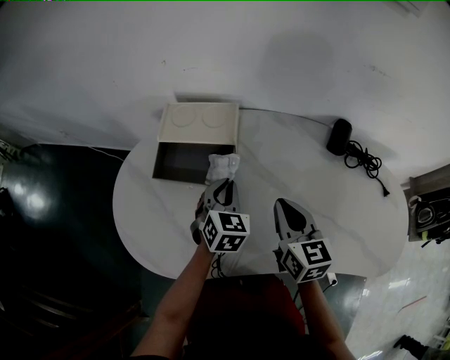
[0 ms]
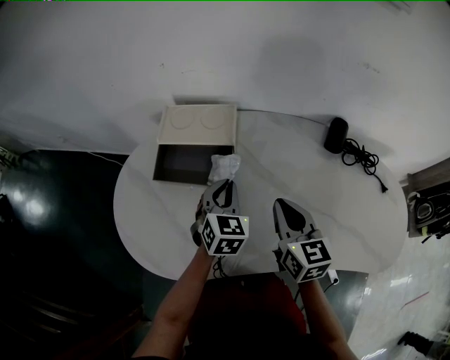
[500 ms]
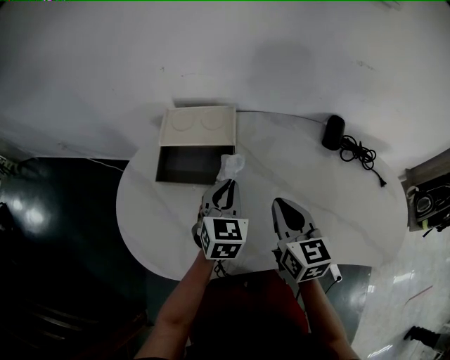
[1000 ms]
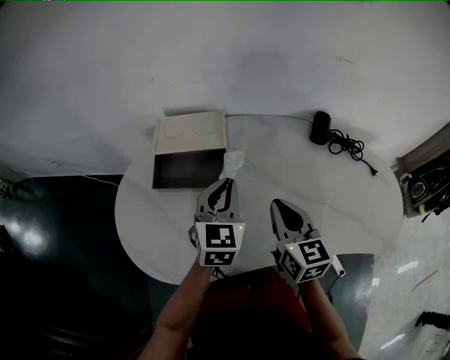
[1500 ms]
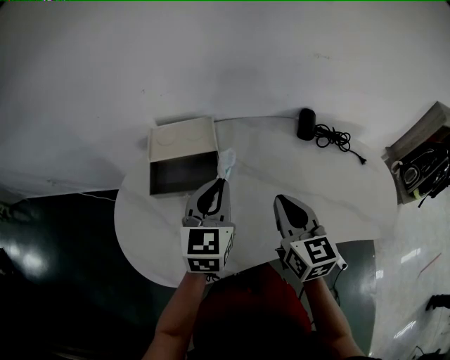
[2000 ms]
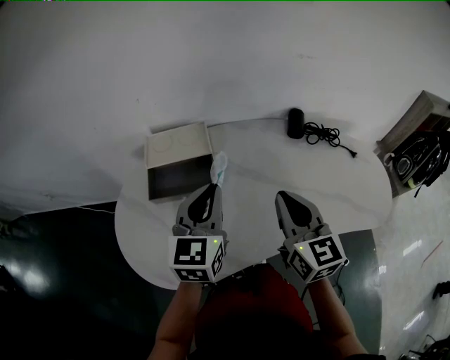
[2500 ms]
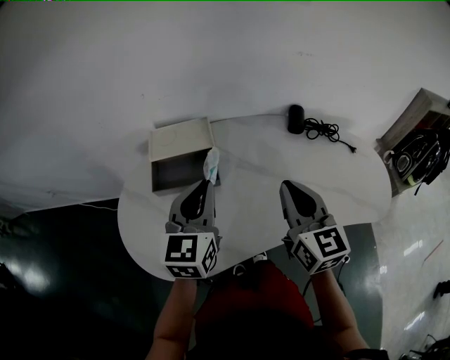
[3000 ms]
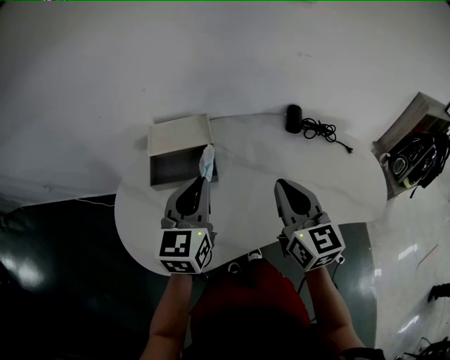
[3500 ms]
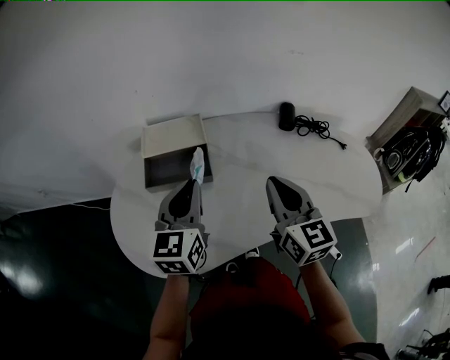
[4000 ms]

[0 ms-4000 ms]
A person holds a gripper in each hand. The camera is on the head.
0 ms to 2000 ms: The left gripper shifts about 15 cm upward, and swivels some 30 degrees, while the right gripper heads upward and backward, covering about 10 cm.
2000 ms to 4000 ms: The left gripper shifts about 10 cm backward and to the left, while the right gripper shifts by roughly 5 cm.

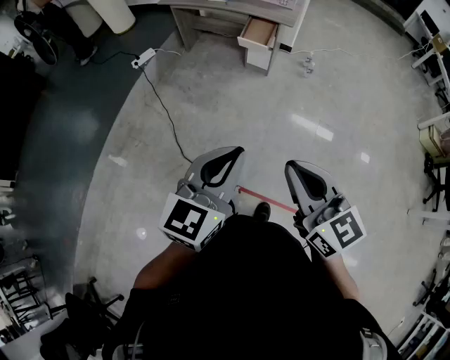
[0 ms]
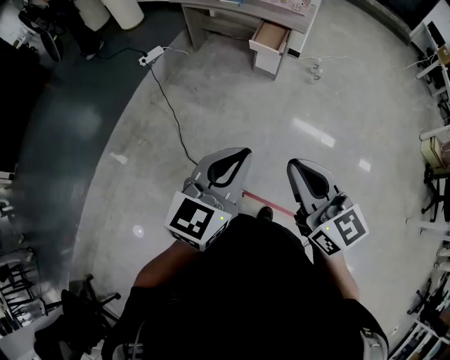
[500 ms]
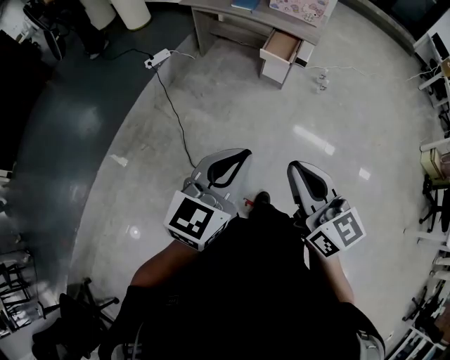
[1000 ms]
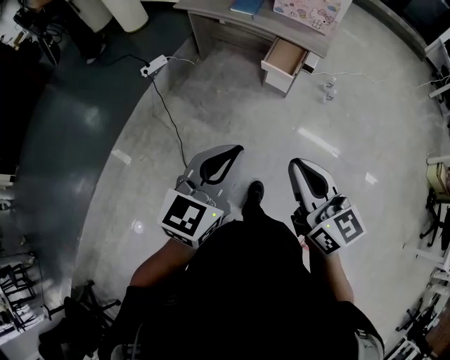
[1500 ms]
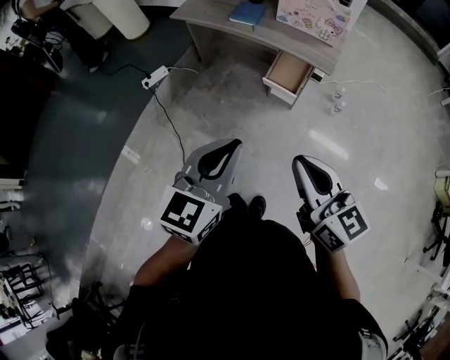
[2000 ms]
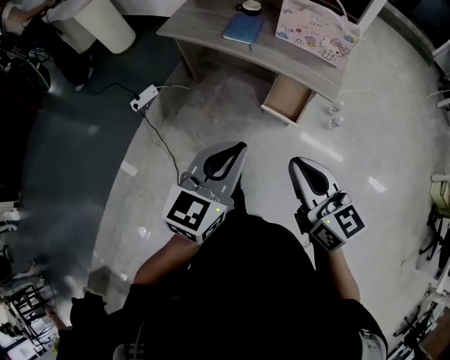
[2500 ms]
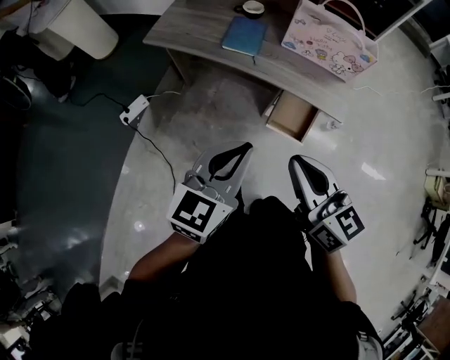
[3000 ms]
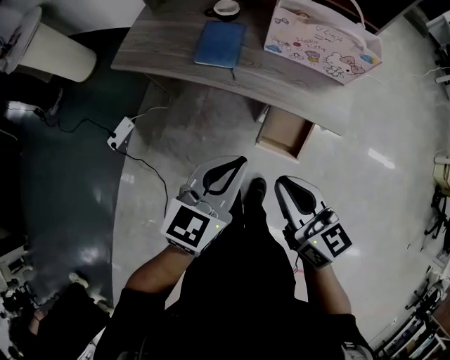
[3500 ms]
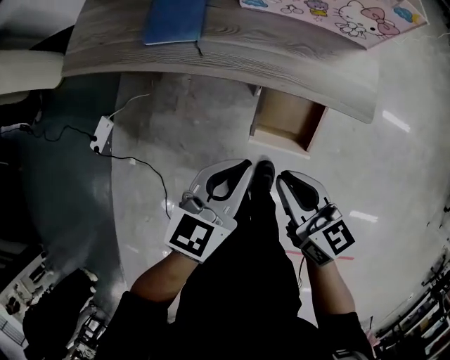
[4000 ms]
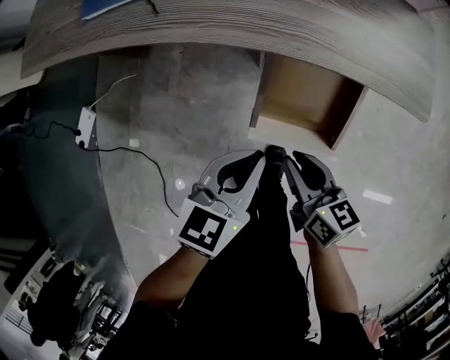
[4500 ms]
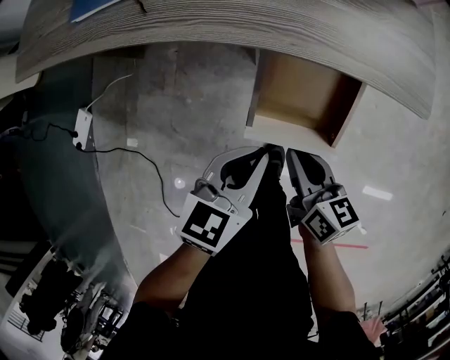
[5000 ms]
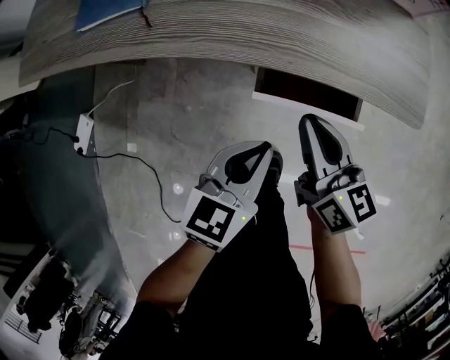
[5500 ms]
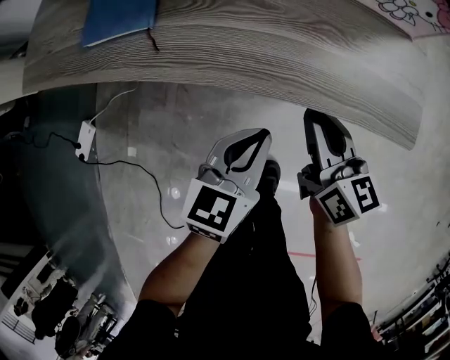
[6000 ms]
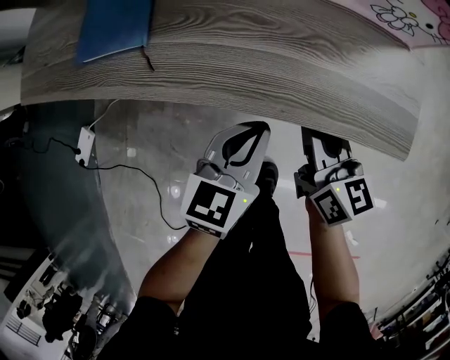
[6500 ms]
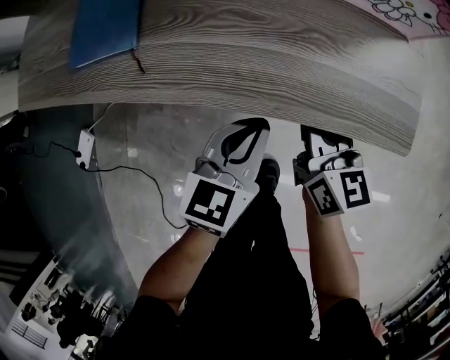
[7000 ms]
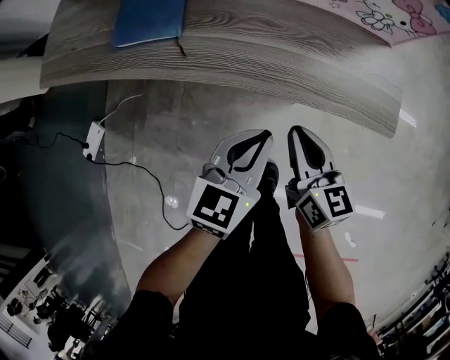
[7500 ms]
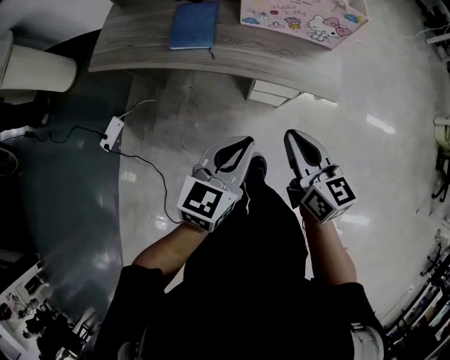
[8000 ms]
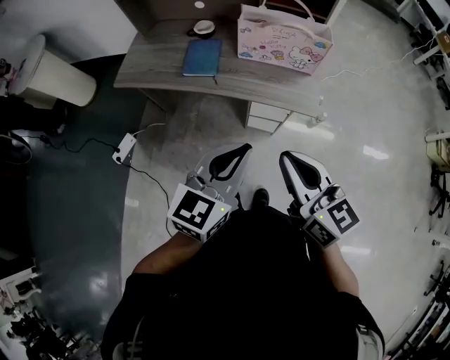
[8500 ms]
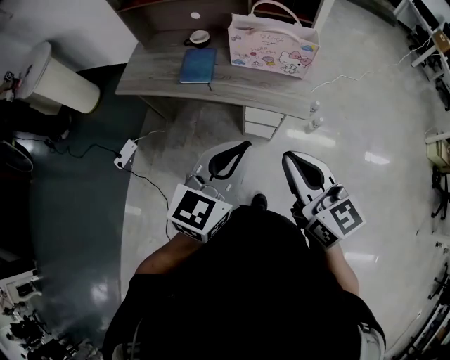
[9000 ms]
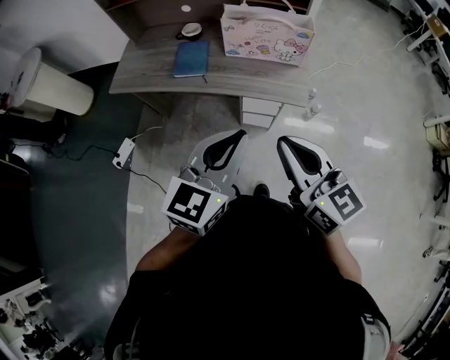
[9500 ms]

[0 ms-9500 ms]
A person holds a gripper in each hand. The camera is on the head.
0 ms to 2000 ms: Both grippers are carried forward, approximately 40 cm.
2000 ms to 4000 ms: The two grippers travel together, forward, about 40 cm. The two grippers go roughly 30 cm downward. The right gripper turns by roughly 20 degrees. The left gripper rotates some 30 degrees.
4000 ms to 5500 ms: The right gripper is displaced downward and forward by roughly 20 cm; the left gripper travels downward by approximately 20 cm.
5500 ms to 7500 ms: The right gripper travels forward and back again, roughly 10 cm each way, while the left gripper moves upward, about 10 cm.
7500 ms to 9500 ms: The two grippers go roughly 50 cm upward and backward. The right gripper changes its angle by approximately 20 degrees.

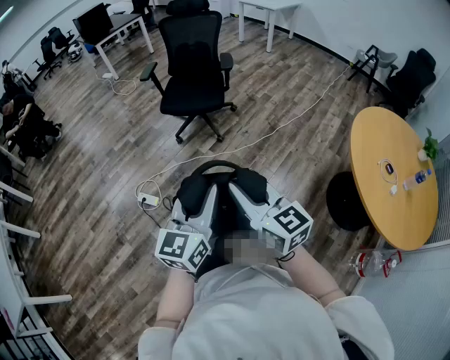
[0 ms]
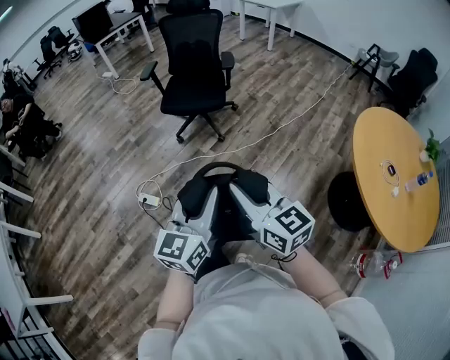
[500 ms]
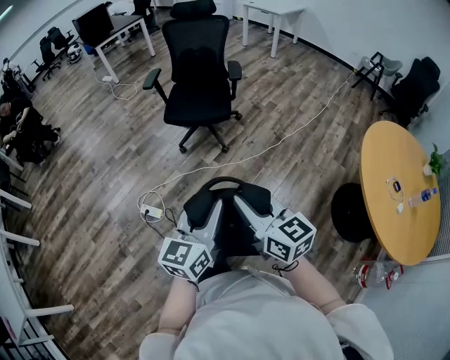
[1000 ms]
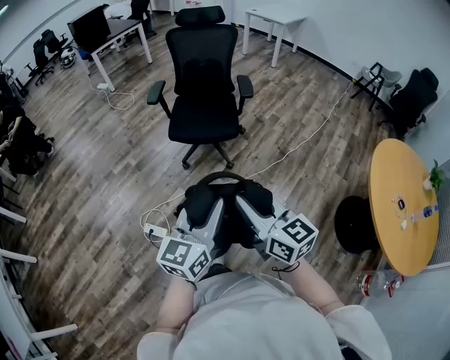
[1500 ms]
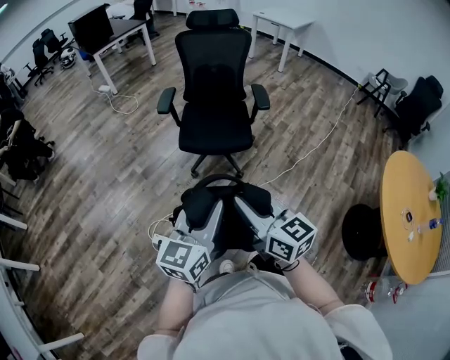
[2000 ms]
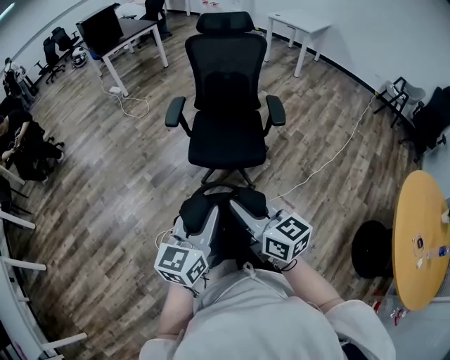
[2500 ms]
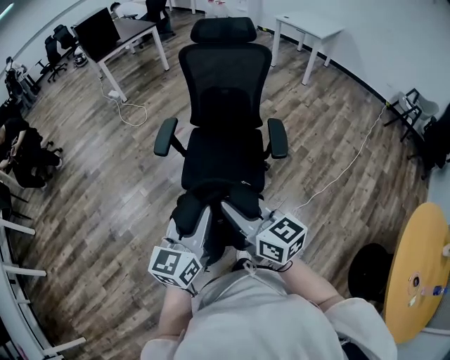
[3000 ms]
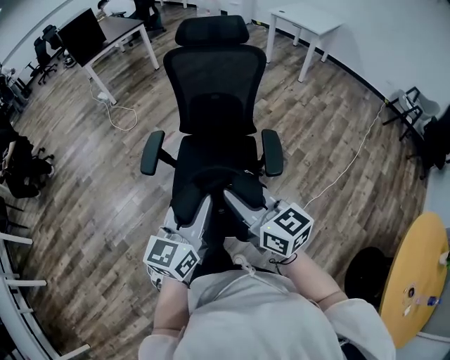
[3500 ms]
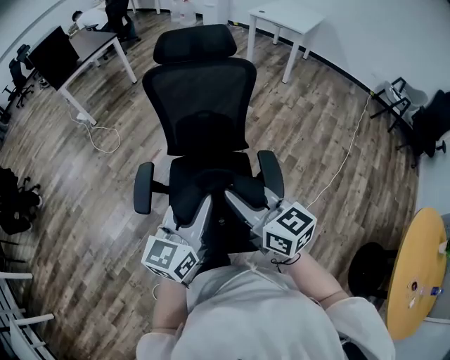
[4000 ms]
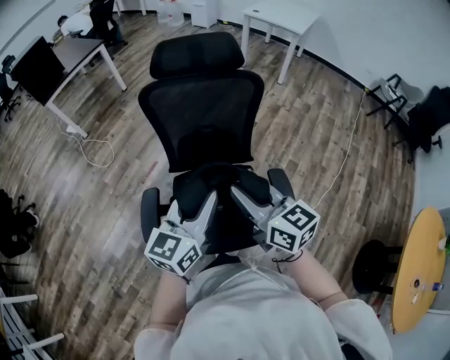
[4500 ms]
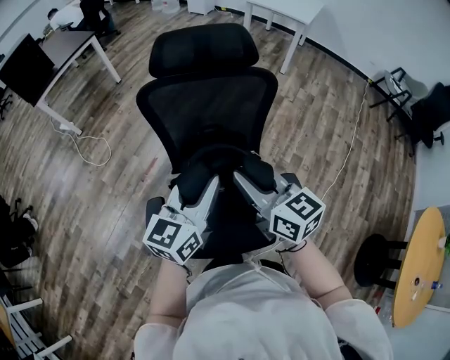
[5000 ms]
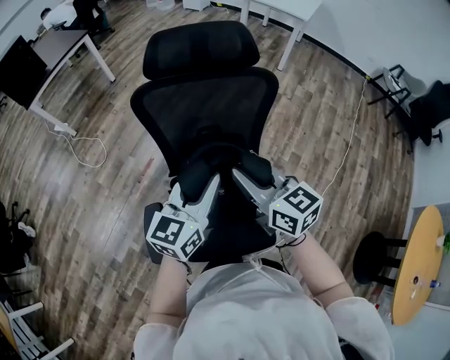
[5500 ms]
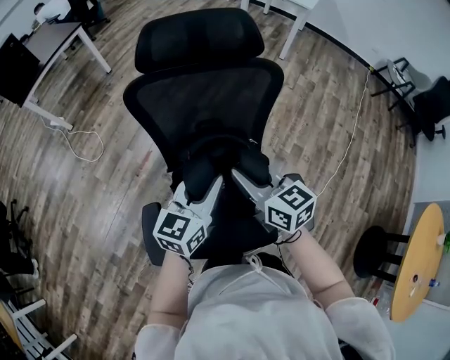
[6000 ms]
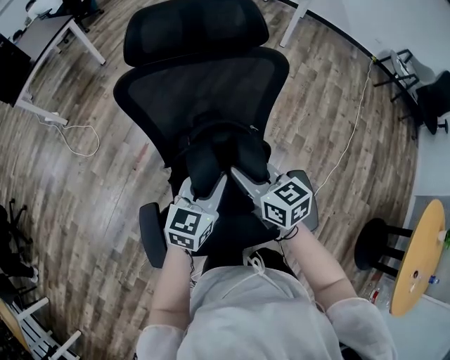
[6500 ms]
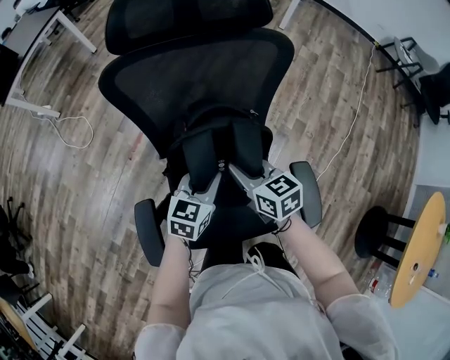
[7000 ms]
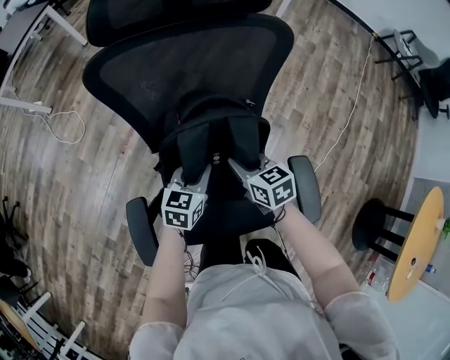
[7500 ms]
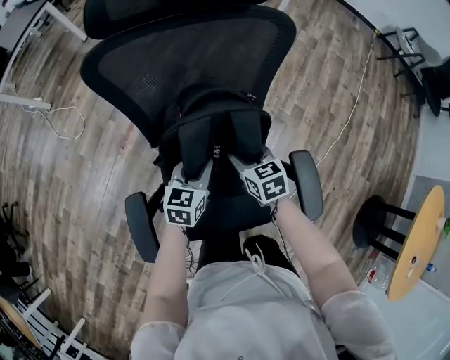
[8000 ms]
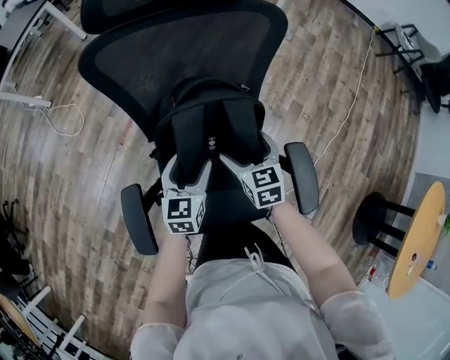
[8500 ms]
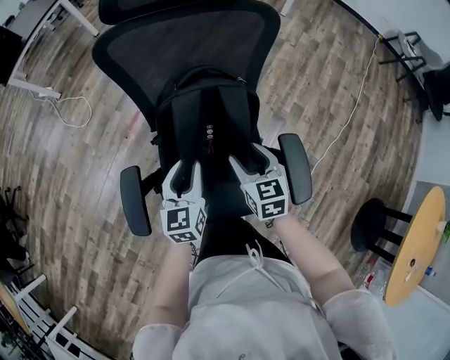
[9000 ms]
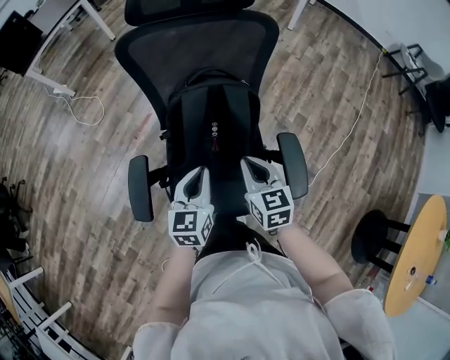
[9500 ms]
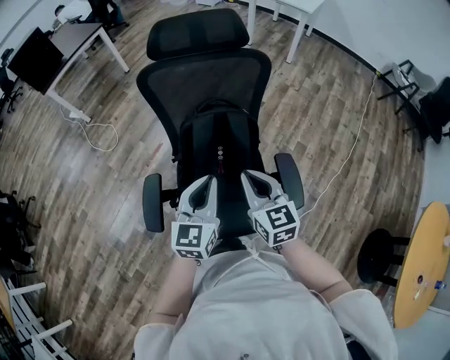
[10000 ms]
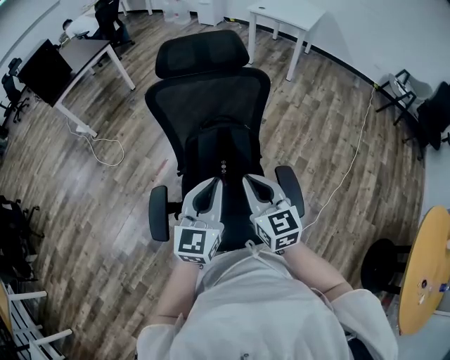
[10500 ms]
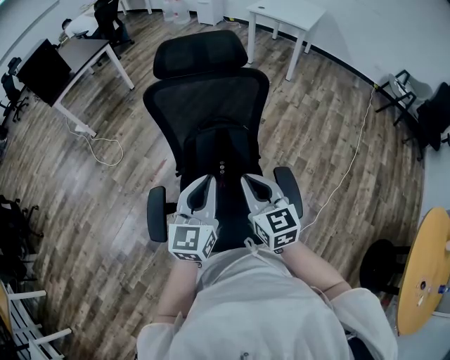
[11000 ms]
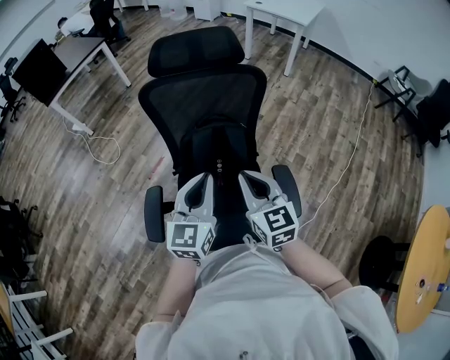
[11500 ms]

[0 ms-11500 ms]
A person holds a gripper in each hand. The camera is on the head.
0 ms to 2000 ms: The two grippers travel together, forward and to the left, roughly 40 cm.
2000 ms to 4000 ms: Both grippers are carried forward, some 60 cm.
4000 ms to 6000 ms: The two grippers go about 35 cm forward.
6000 ms to 7500 ms: The grippers both shift downward by roughly 20 cm. The right gripper rotates some 20 degrees. Meanwhile the left gripper rotates approximately 20 degrees.
7500 ms to 9500 ms: The two grippers go about 20 cm backward and upward. The right gripper opens and closes again, while the left gripper rotates roughly 20 degrees, and opens, then closes once more.
9500 ms to 11500 ms: The grippers both shift upward by approximately 20 cm.

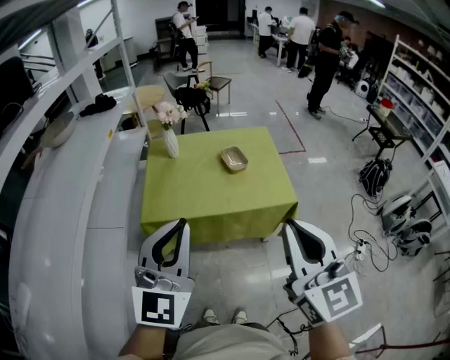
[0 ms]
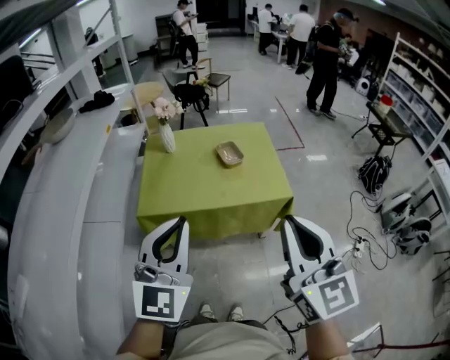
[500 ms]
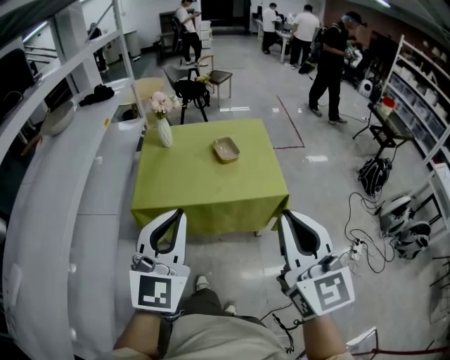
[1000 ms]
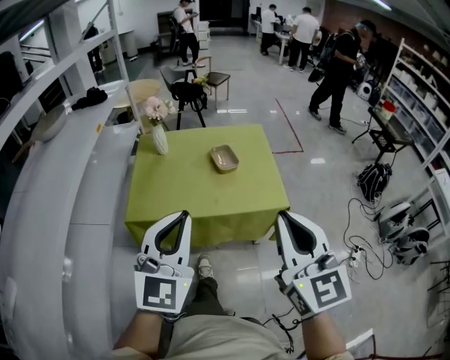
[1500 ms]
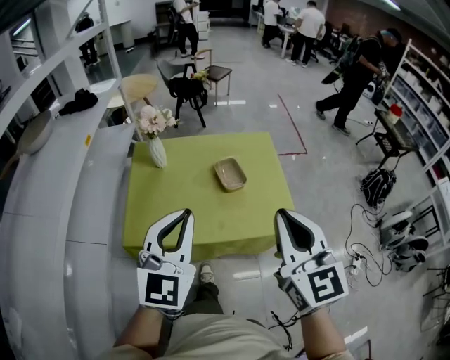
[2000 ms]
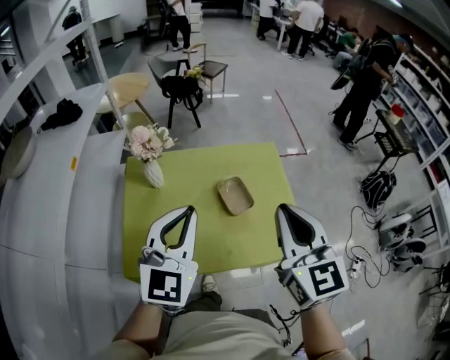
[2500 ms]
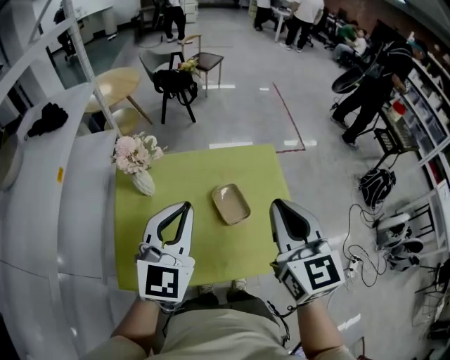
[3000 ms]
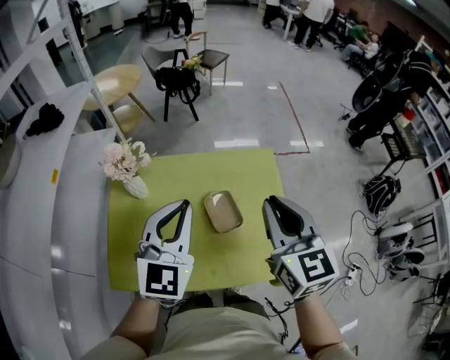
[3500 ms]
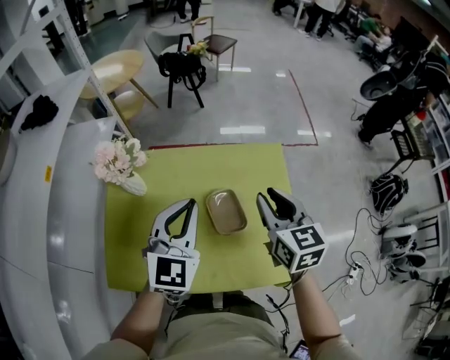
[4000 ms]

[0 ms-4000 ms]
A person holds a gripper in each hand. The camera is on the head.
0 ms to 2000 ms: Both grippers move forward, about 20 cm.
2000 ms to 4000 ms: The right gripper is displaced forward and downward by roughly 40 cm, turns by some 20 degrees, and opens up. The left gripper is displaced forward by some 35 cm.
